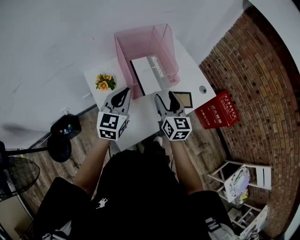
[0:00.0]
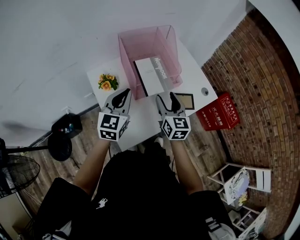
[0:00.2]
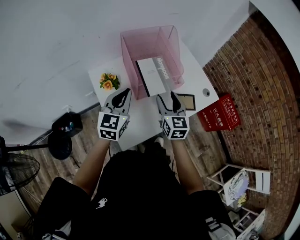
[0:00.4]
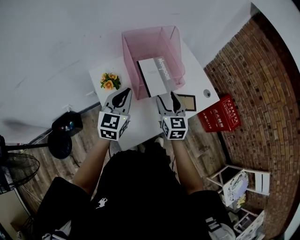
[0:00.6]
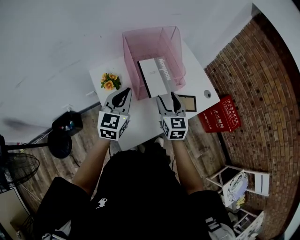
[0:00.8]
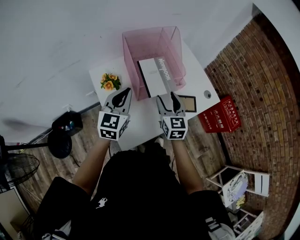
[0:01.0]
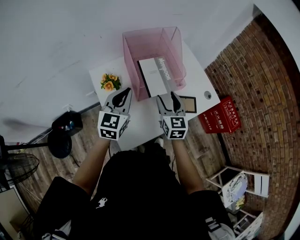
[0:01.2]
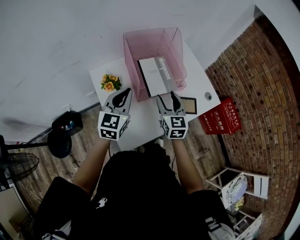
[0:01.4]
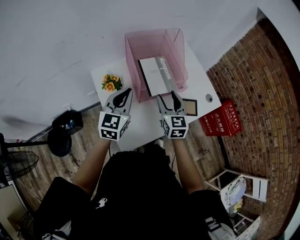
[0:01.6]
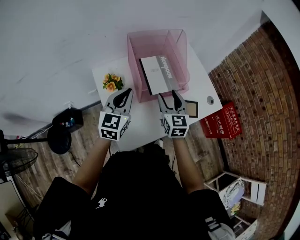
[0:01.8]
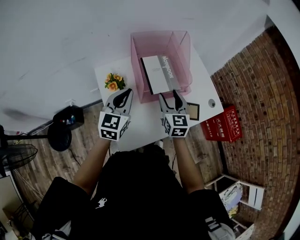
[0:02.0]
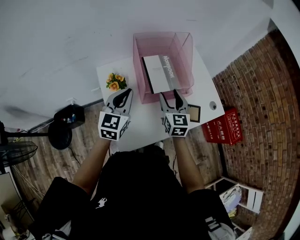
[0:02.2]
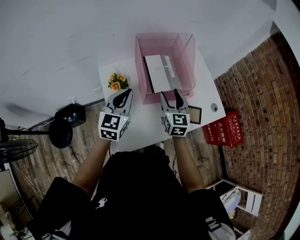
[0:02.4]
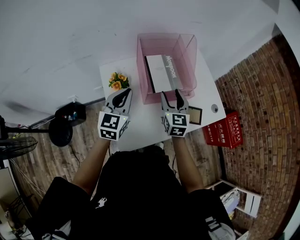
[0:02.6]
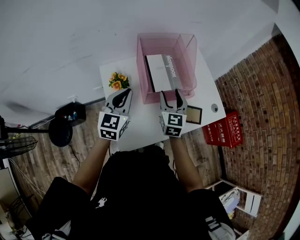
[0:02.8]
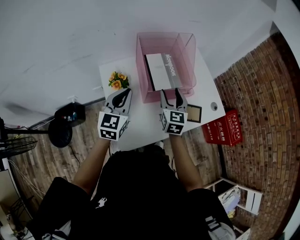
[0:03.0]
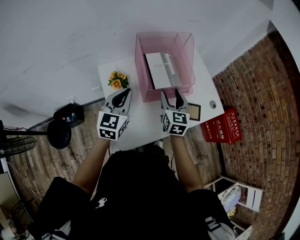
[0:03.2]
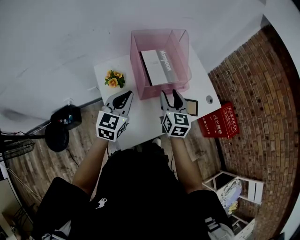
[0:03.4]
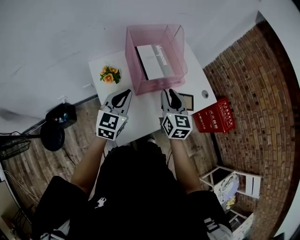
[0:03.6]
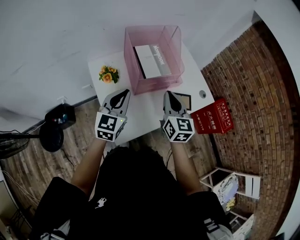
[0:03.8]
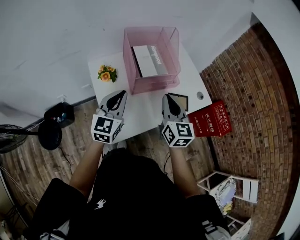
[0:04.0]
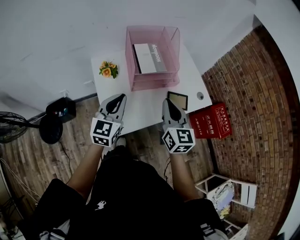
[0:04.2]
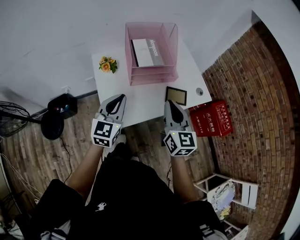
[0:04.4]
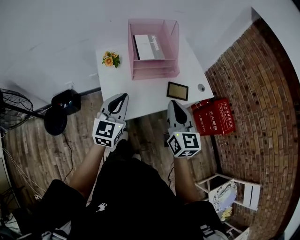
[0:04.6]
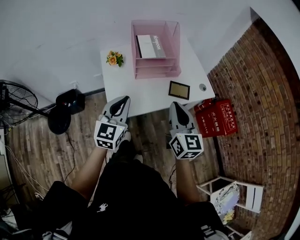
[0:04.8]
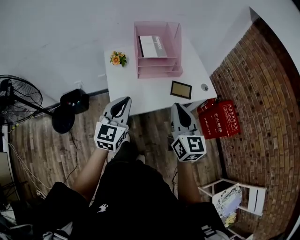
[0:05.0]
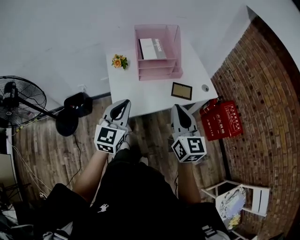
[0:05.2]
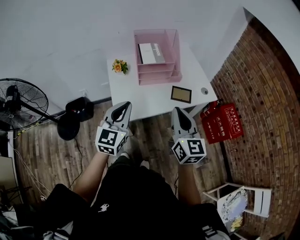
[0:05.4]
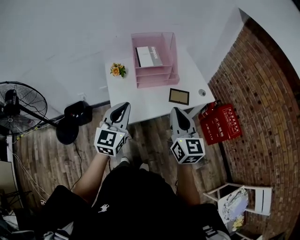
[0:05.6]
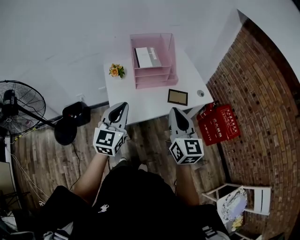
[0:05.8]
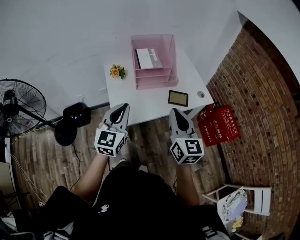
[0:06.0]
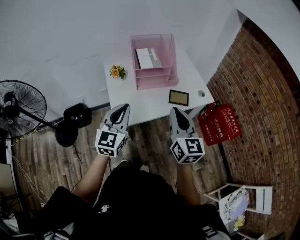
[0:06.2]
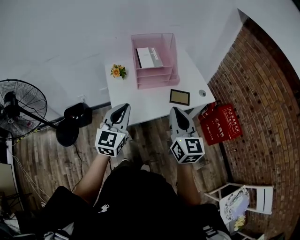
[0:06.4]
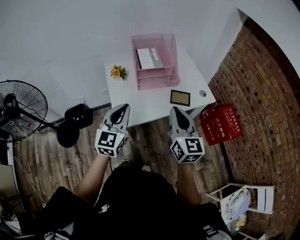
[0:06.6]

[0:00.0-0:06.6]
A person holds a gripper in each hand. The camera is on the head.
0:00.0 to 0:01.6: The right gripper shifts by some 5 cm.
0:01.6 to 0:03.2: The grippers make only small movements.
0:03.2 to 0:05.0: The left gripper is displaced backward and to the right by about 25 cm, while the right gripper goes roughly 35 cm backward, to the right and upward, and closes.
0:05.0 to 0:06.6: There are only small adjustments of the grippers.

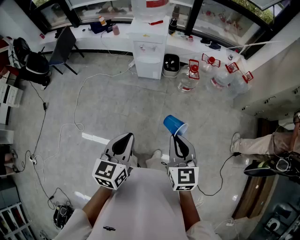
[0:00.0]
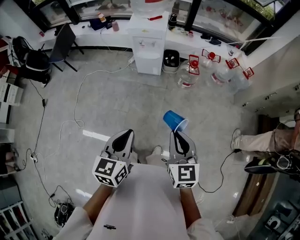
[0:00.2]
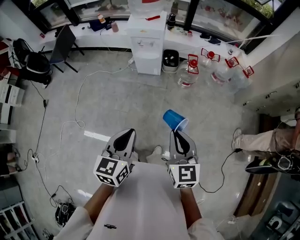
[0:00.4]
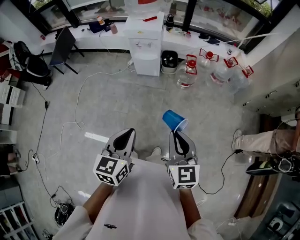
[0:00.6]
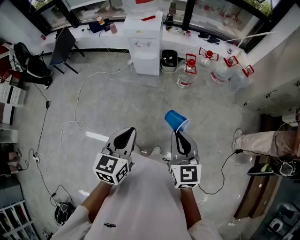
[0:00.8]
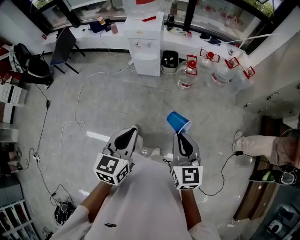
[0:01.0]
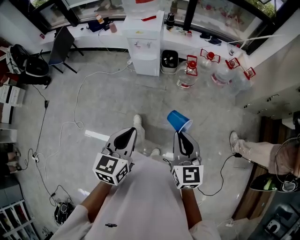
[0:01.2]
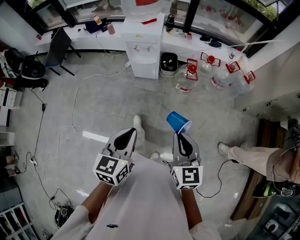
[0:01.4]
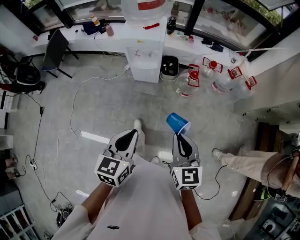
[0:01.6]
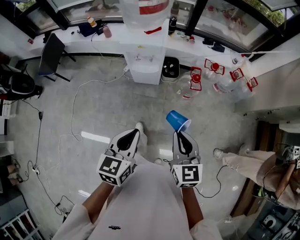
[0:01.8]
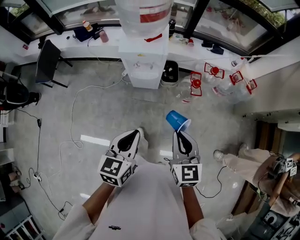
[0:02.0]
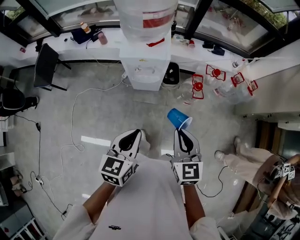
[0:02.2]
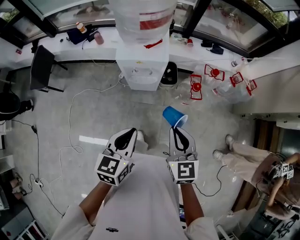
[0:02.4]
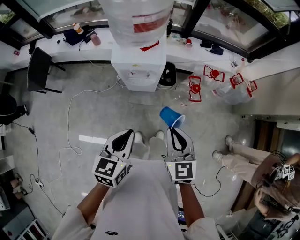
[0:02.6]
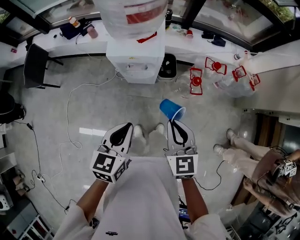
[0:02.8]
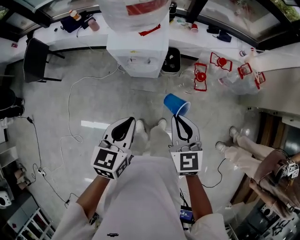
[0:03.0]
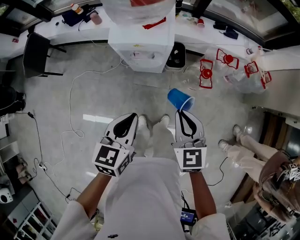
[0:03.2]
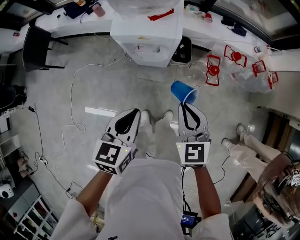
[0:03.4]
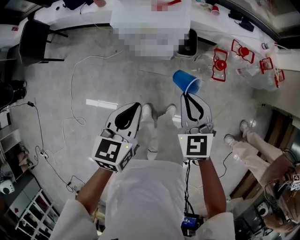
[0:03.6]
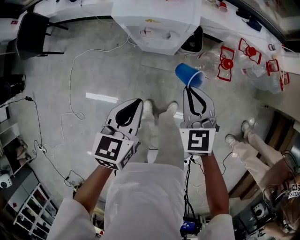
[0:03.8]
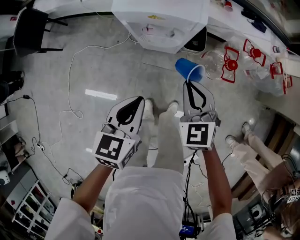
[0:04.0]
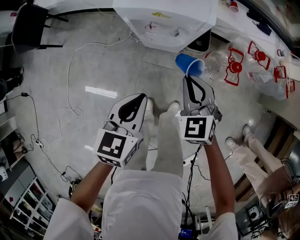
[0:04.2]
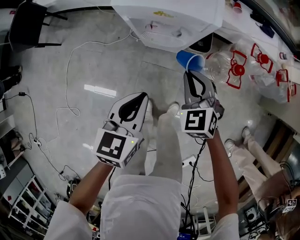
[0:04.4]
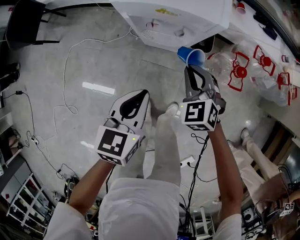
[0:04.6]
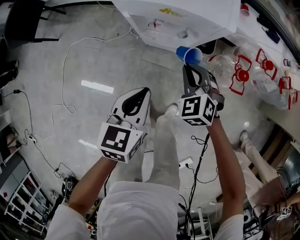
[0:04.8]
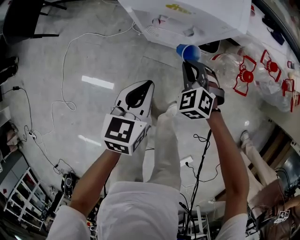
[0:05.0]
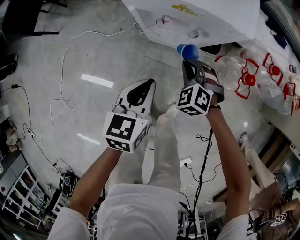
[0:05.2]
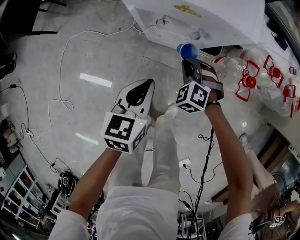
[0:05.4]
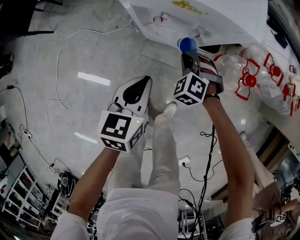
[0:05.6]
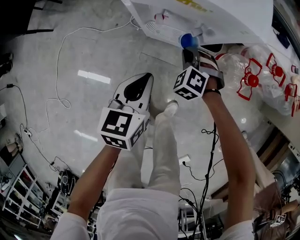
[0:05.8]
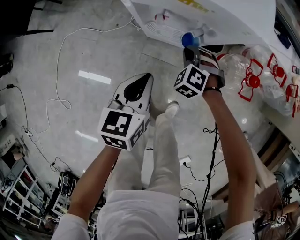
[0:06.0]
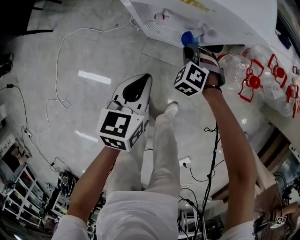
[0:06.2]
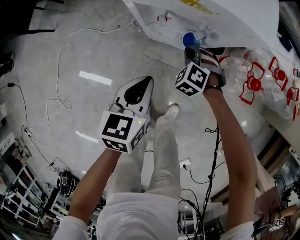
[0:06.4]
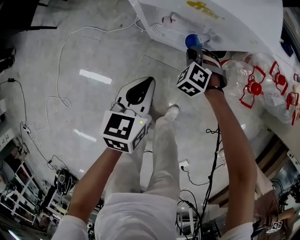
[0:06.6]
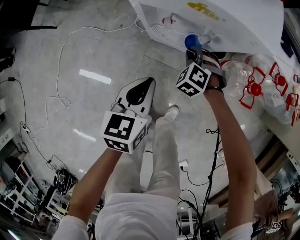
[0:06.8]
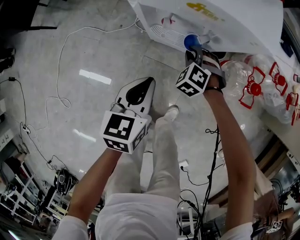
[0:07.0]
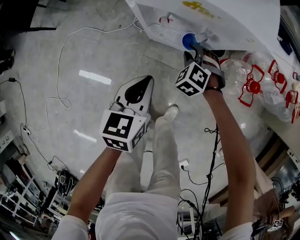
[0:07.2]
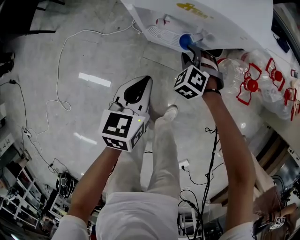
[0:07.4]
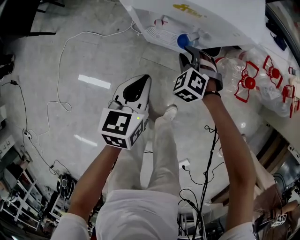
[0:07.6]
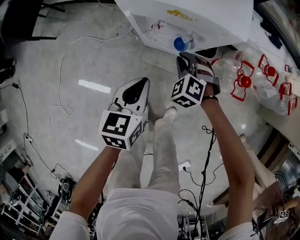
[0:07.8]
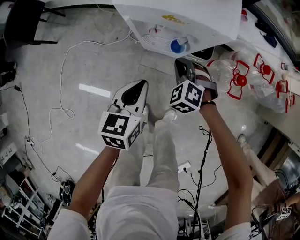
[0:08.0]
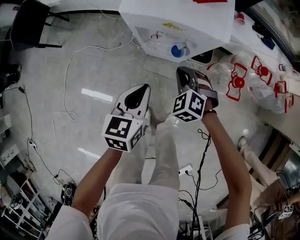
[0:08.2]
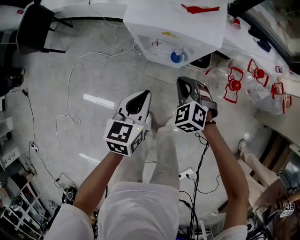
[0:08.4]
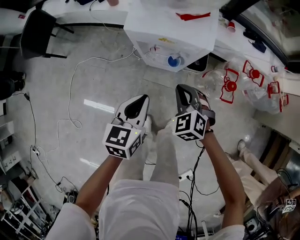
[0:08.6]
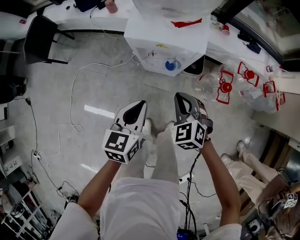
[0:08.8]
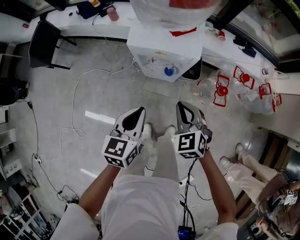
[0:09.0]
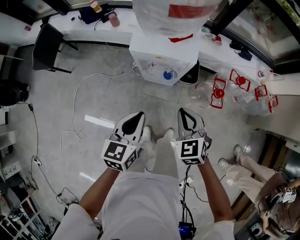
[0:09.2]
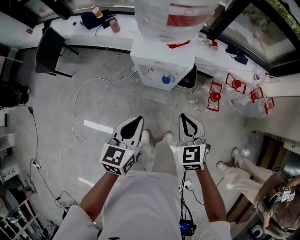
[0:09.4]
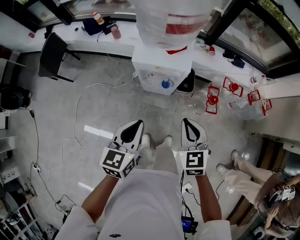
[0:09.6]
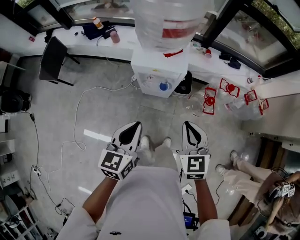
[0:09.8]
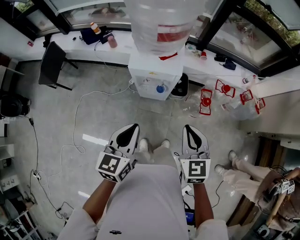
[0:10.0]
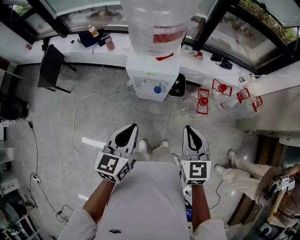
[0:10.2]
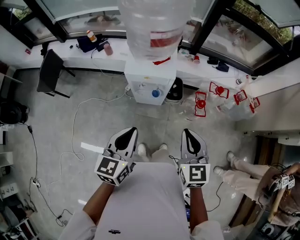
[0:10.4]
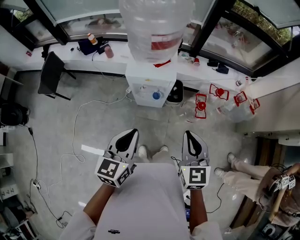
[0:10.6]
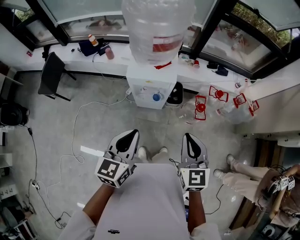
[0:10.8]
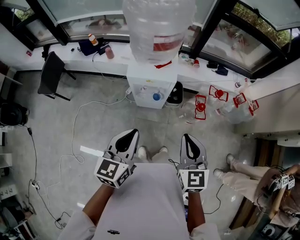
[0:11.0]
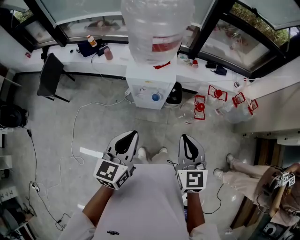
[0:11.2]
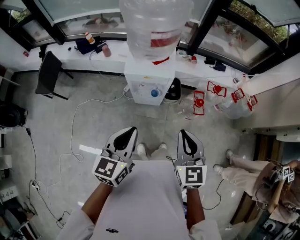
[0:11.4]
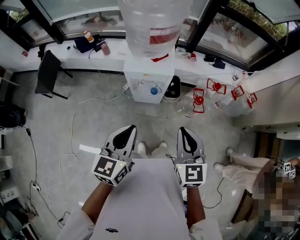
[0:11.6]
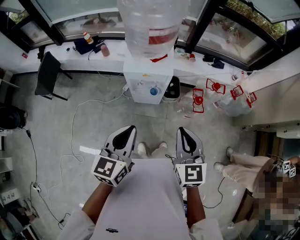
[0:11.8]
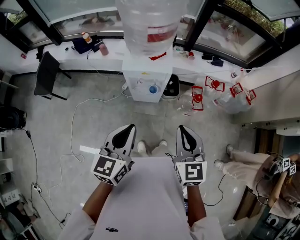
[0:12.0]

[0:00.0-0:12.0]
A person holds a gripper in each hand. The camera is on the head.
0:00.0 to 0:01.6: The two grippers go some 15 cm forward.
0:01.6 to 0:03.0: The two grippers go about 25 cm forward.
0:03.0 to 0:04.4: The left gripper heads downward, covering roughly 20 cm. Meanwhile the right gripper travels downward and forward by about 25 cm, and swivels some 30 degrees.
0:04.4 to 0:06.0: The left gripper moves downward and forward, roughly 15 cm. Meanwhile the right gripper goes about 25 cm downward and forward, and swivels about 40 degrees.
0:06.0 to 0:07.6: The right gripper opens up.
0:07.6 to 0:09.0: The right gripper is displaced upward and backward by roughly 30 cm, changes its angle by about 30 degrees, and closes its fingers. The left gripper shifts some 20 cm upward.
0:09.0 to 0:10.4: The left gripper heads upward, covering about 15 cm; the right gripper is displaced upward and backward by approximately 25 cm, and swivels roughly 30 degrees.
0:10.4 to 0:12.0: There are only small adjustments of the grippers.

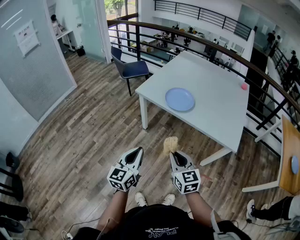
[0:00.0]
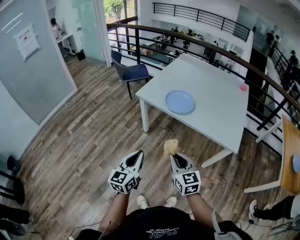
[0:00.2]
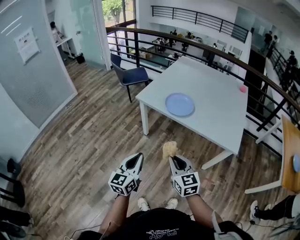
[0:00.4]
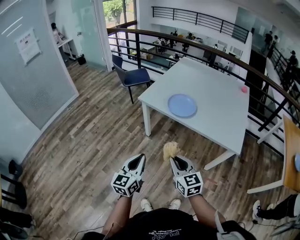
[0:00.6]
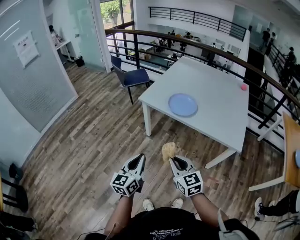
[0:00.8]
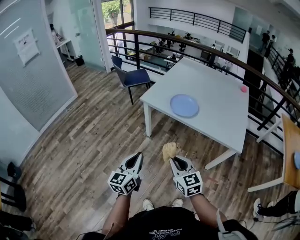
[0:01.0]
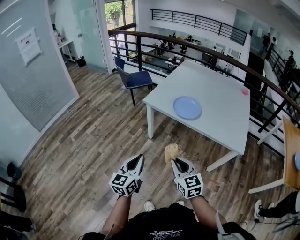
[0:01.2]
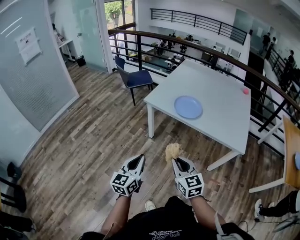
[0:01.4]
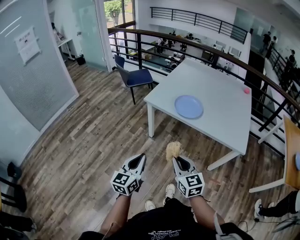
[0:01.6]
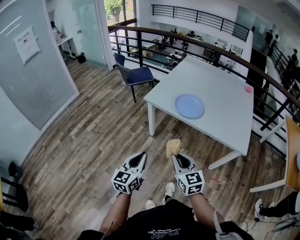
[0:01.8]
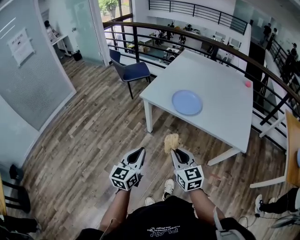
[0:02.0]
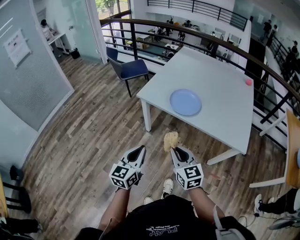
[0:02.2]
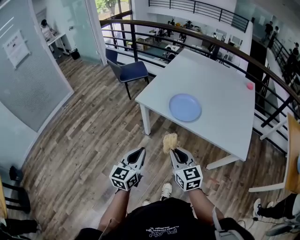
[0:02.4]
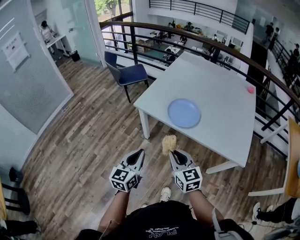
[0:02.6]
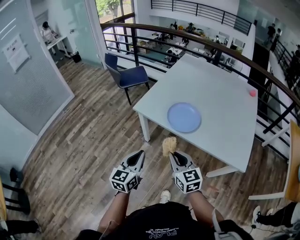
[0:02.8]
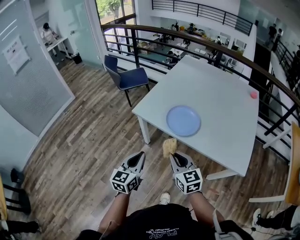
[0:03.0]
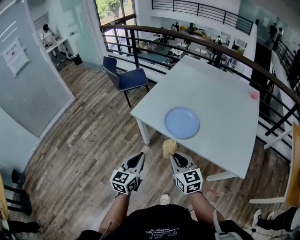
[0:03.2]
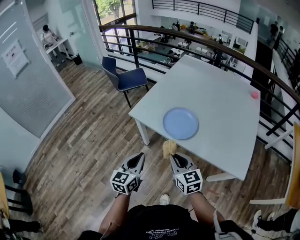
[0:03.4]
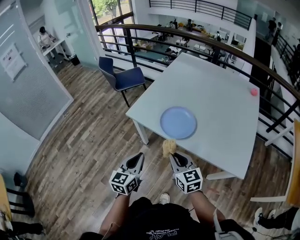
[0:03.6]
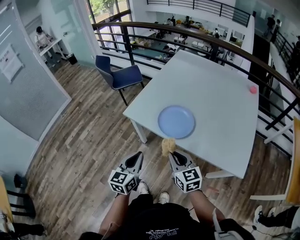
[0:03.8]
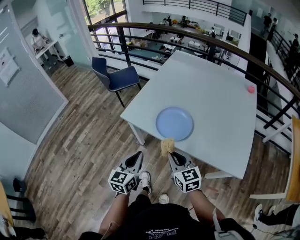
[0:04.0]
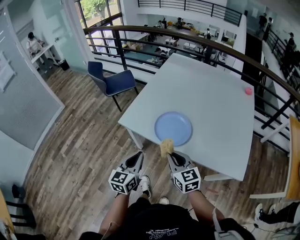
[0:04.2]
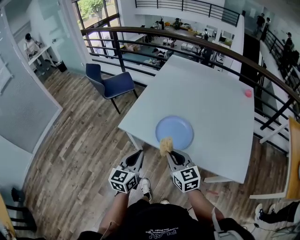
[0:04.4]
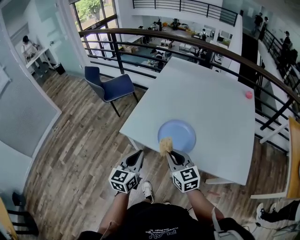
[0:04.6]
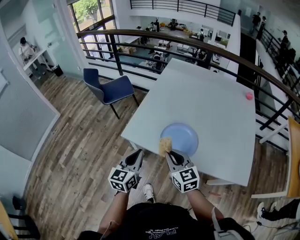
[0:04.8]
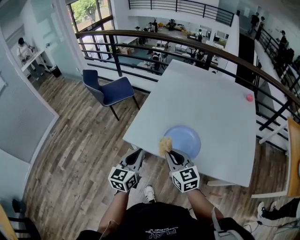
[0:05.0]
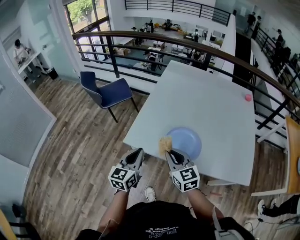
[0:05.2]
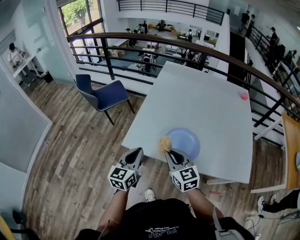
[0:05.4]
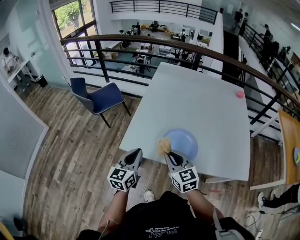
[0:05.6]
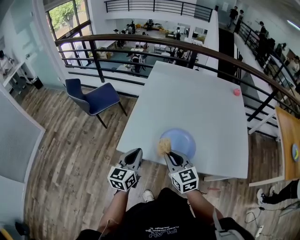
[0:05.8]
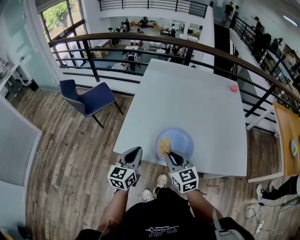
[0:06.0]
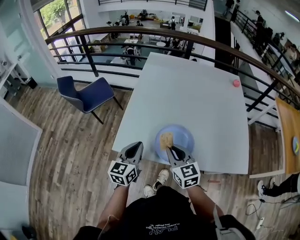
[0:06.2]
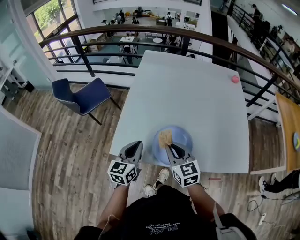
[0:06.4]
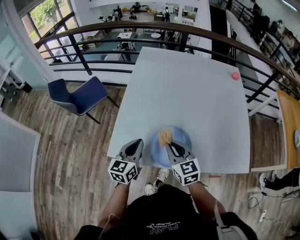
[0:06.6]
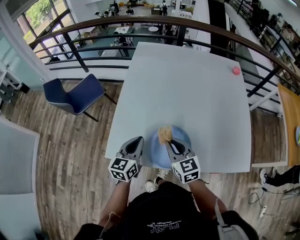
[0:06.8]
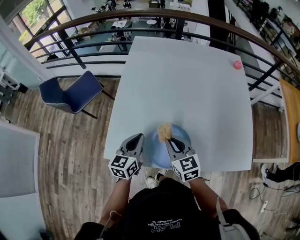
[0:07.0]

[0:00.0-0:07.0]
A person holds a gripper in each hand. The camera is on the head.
0:00.0 to 0:01.4: Both grippers travel together to the left, approximately 10 cm.
0:01.4 to 0:02.8: The right gripper travels forward by some 20 cm; the left gripper heads forward and to the right, covering some 20 cm.
0:02.8 to 0:04.2: Both grippers move forward and to the right, about 15 cm.
0:04.2 to 0:05.6: The two grippers go some 15 cm forward and to the left.
0:05.6 to 0:07.0: The left gripper goes some 20 cm forward and to the right. Meanwhile the right gripper is displaced forward, to the right and downward by some 20 cm.
